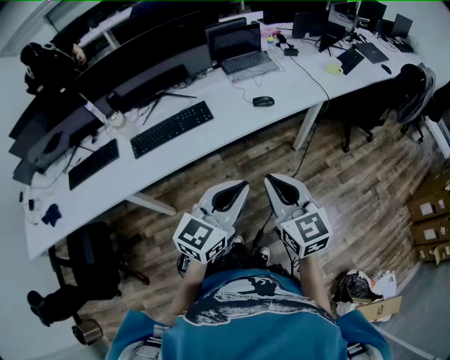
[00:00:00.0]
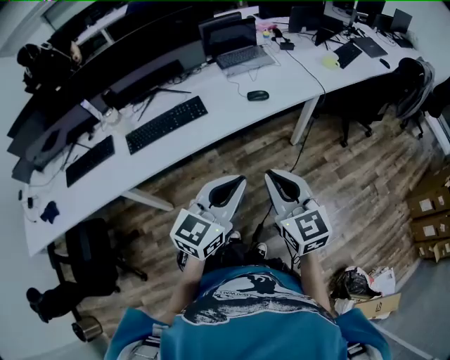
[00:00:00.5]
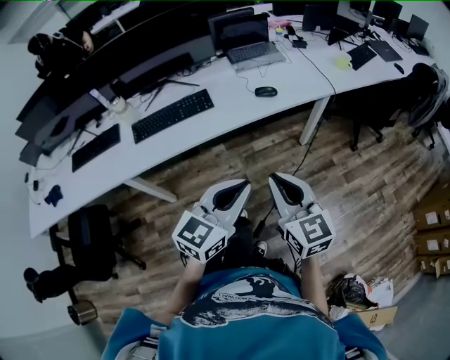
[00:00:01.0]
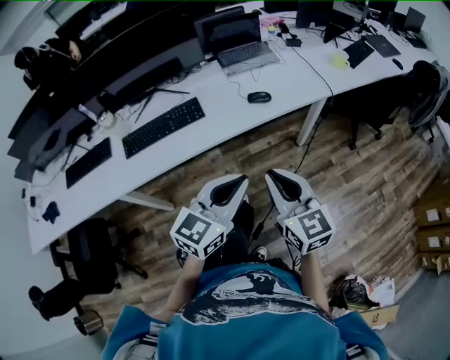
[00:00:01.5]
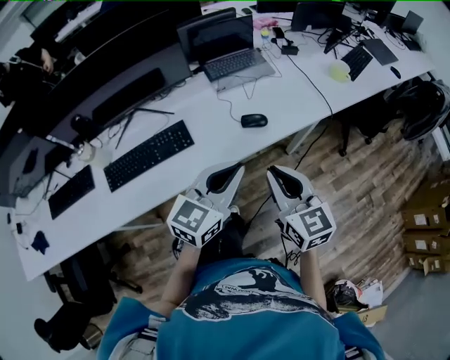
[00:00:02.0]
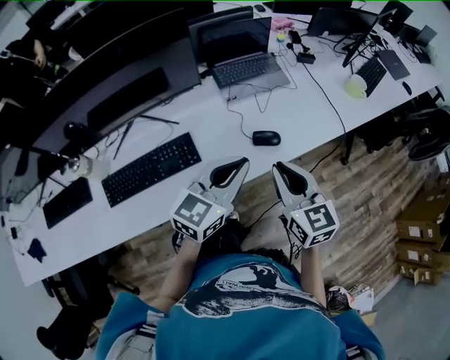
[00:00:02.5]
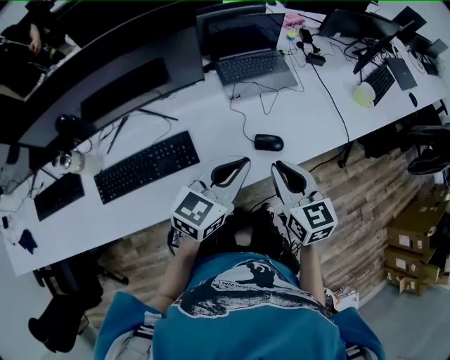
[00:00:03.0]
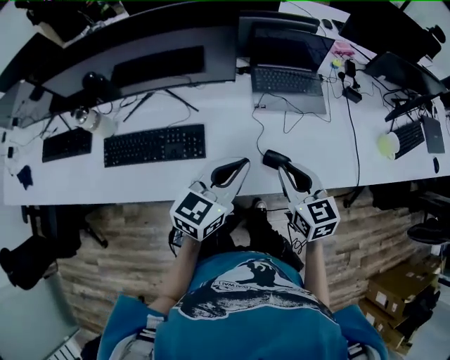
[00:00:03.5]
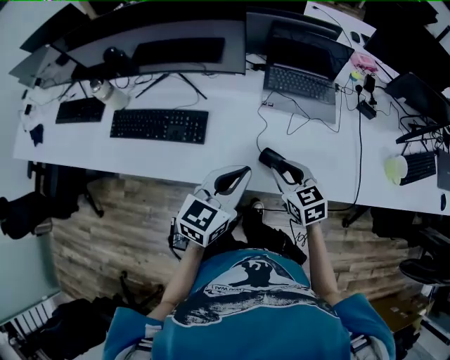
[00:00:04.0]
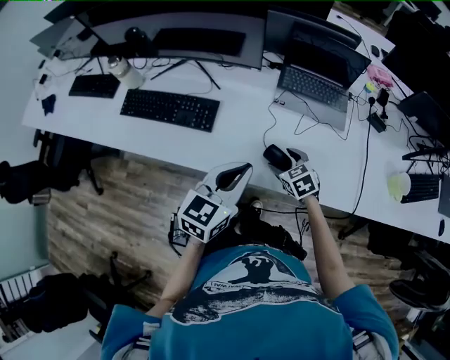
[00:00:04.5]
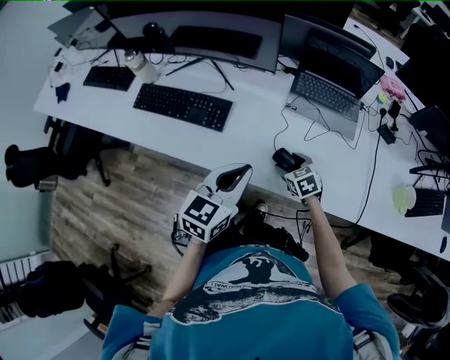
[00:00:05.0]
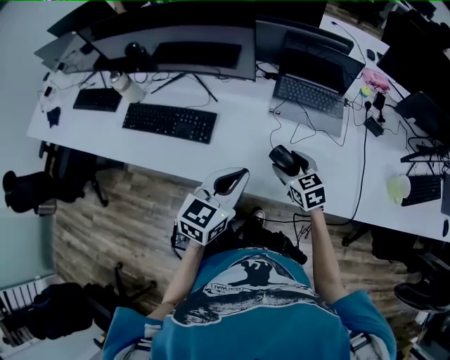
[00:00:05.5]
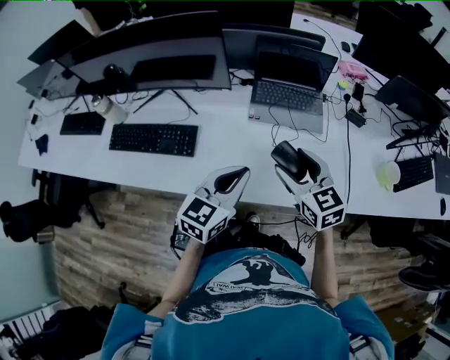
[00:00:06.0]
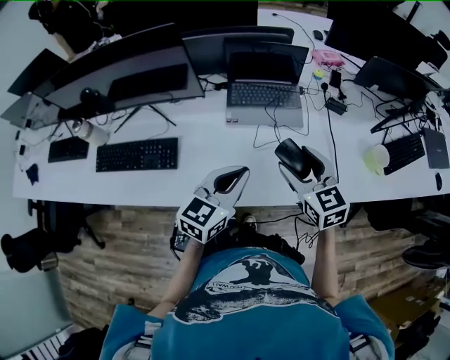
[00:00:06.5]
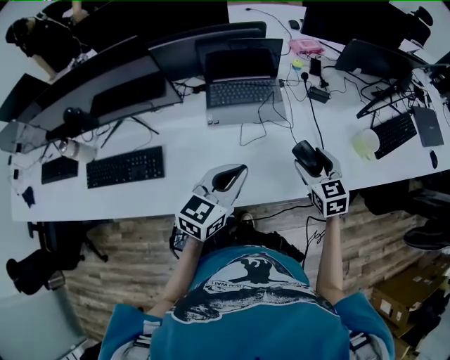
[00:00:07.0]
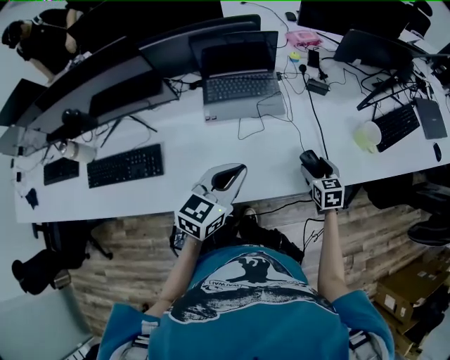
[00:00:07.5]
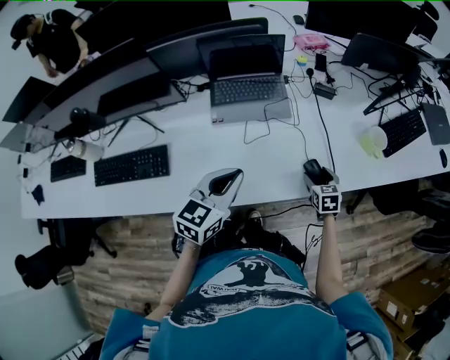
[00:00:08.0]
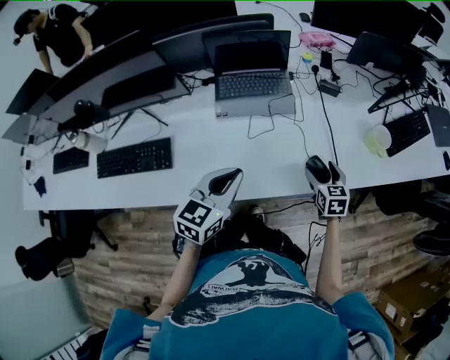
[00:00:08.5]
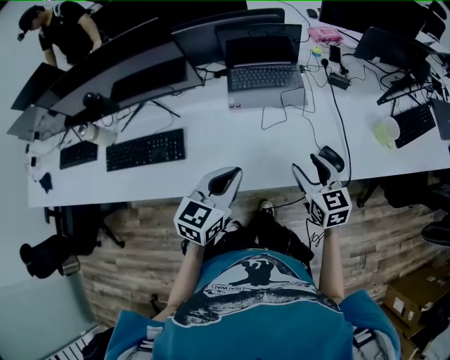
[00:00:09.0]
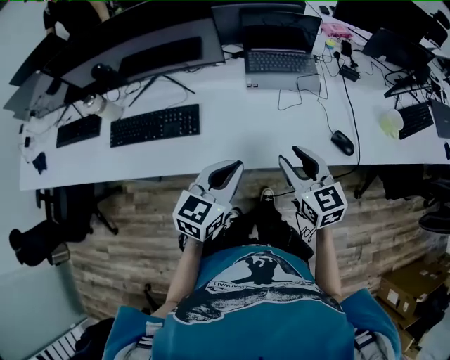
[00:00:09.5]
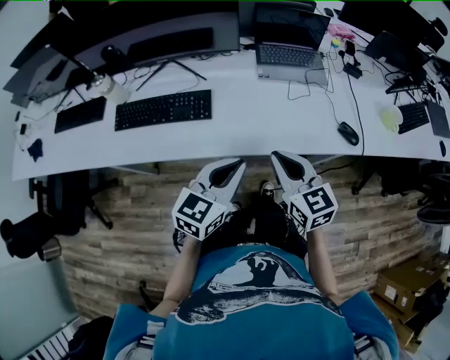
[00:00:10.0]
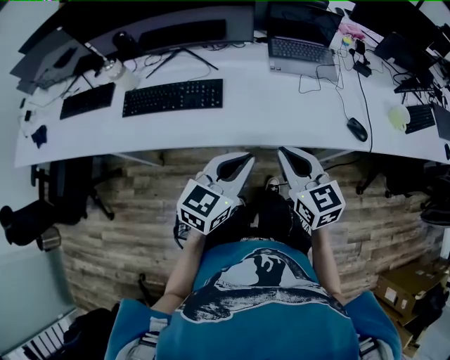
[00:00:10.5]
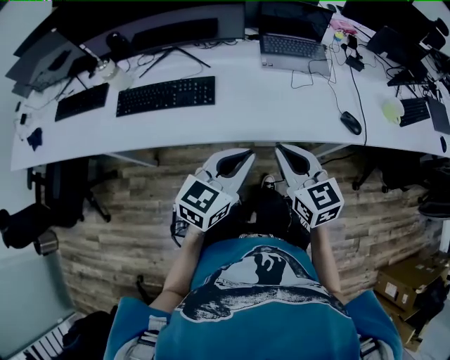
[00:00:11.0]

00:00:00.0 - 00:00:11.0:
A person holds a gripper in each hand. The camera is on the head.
00:00:00.0 - 00:00:02.0: The grippers both shift forward by some 25 cm.
00:00:02.0 - 00:00:03.5: Both grippers travel together forward, about 20 cm. The right gripper changes its angle by approximately 20 degrees; the left gripper rotates approximately 20 degrees.
00:00:03.5 - 00:00:05.5: The left gripper moves about 5 cm, and changes its angle by approximately 20 degrees. Meanwhile the right gripper moves downward, some 10 cm, changes its angle by roughly 30 degrees, and opens up.
00:00:05.5 - 00:00:07.5: The right gripper travels upward and back again, roughly 15 cm each way, and swivels roughly 40 degrees. Meanwhile the left gripper ends up about 15 cm from where it was, and swivels some 20 degrees.
00:00:07.5 - 00:00:09.0: The right gripper is displaced to the left, upward and backward by some 20 cm, and changes its angle by some 20 degrees, while the left gripper heads to the left and backward, covering some 10 cm.
00:00:09.0 - 00:00:11.0: The left gripper heads backward and to the left, covering approximately 20 cm; the right gripper is displaced to the left and backward by about 25 cm, and closes up.

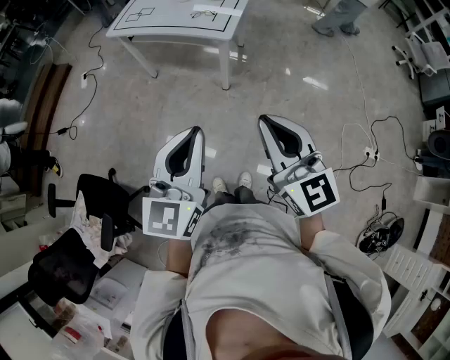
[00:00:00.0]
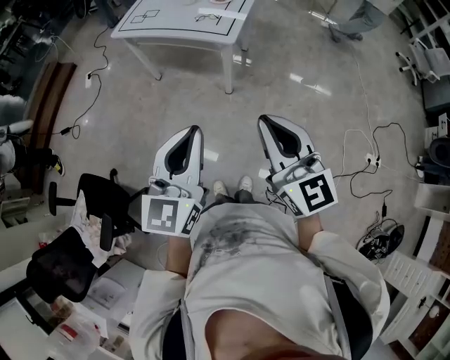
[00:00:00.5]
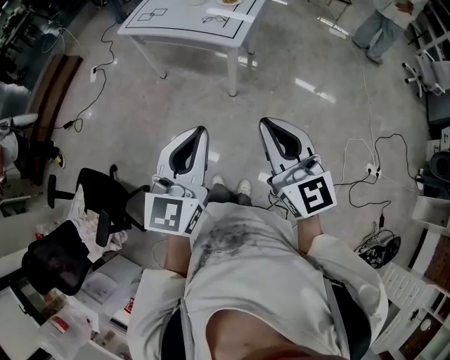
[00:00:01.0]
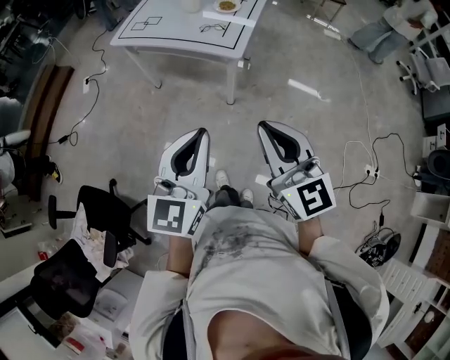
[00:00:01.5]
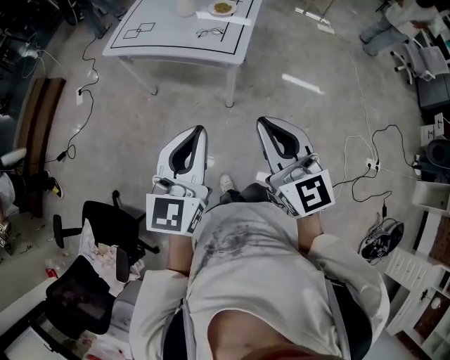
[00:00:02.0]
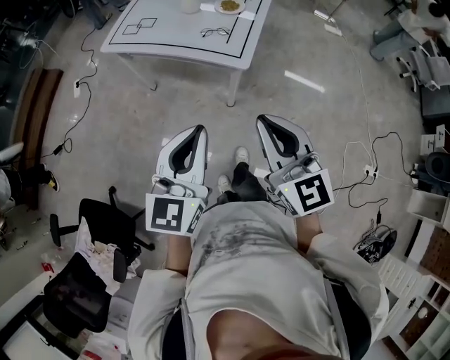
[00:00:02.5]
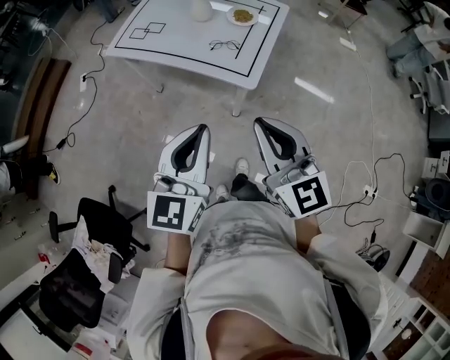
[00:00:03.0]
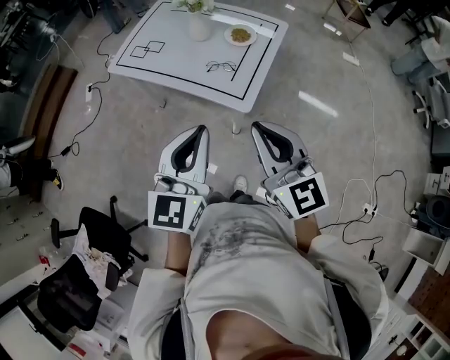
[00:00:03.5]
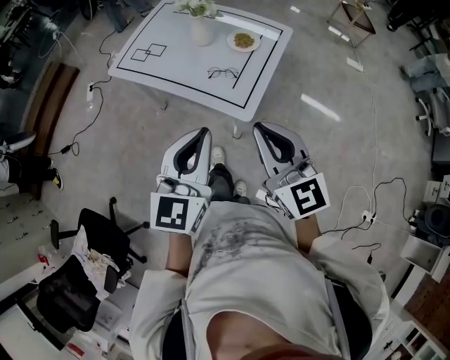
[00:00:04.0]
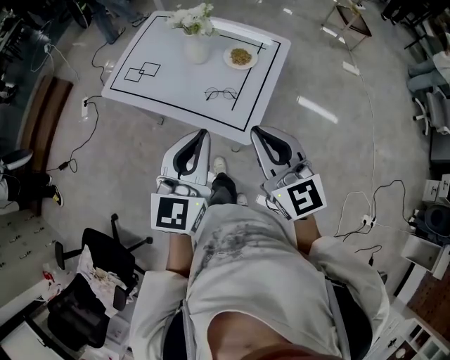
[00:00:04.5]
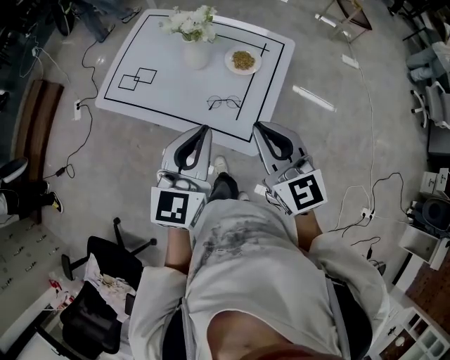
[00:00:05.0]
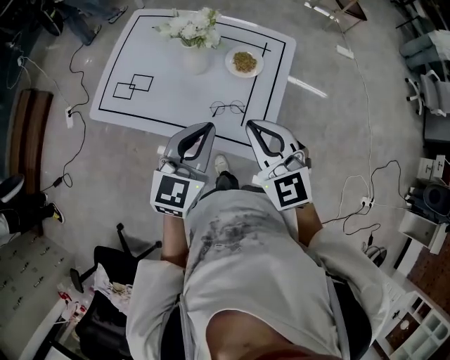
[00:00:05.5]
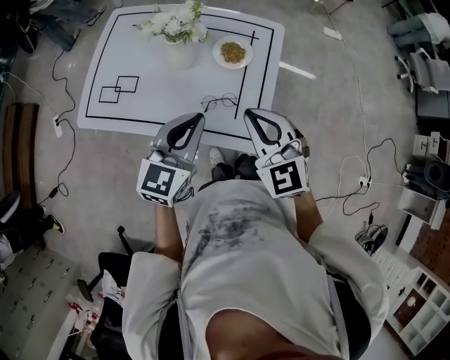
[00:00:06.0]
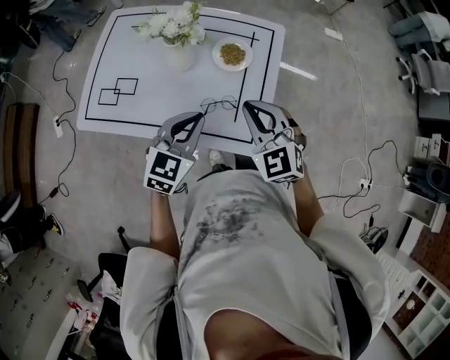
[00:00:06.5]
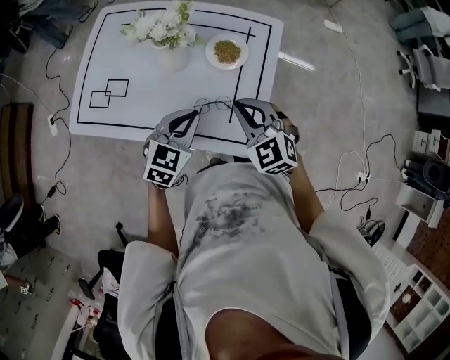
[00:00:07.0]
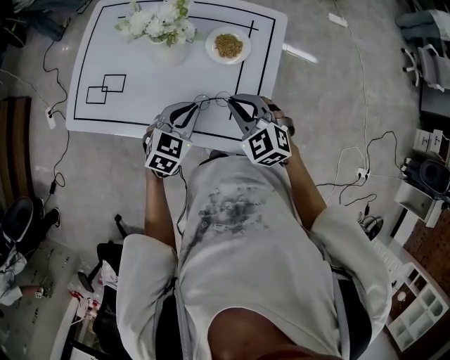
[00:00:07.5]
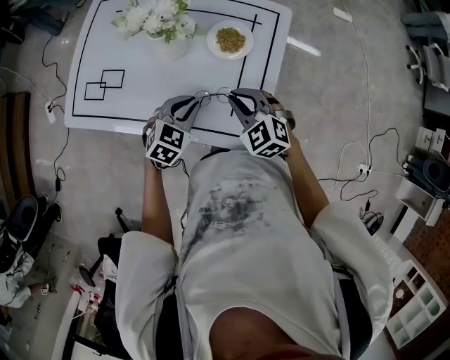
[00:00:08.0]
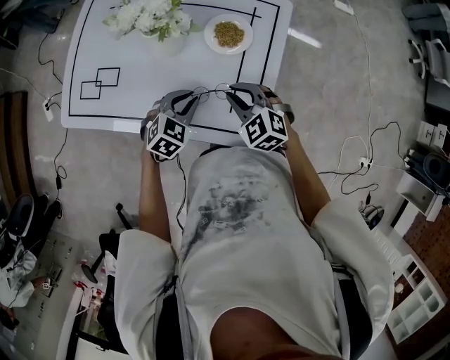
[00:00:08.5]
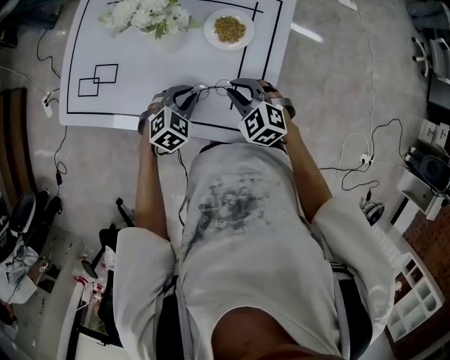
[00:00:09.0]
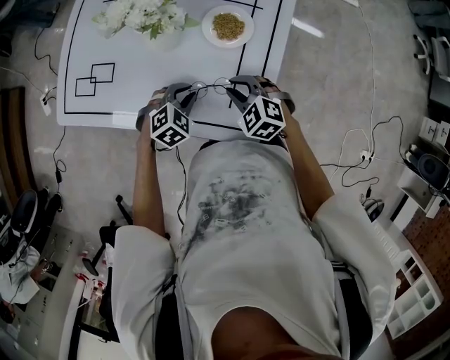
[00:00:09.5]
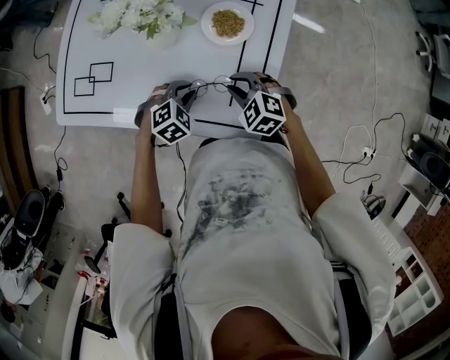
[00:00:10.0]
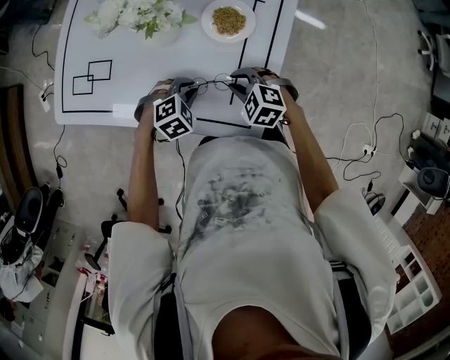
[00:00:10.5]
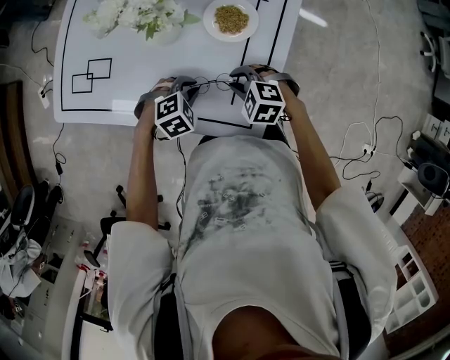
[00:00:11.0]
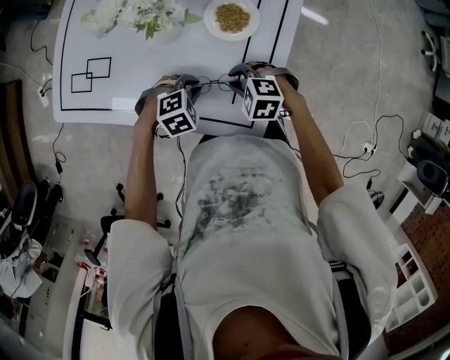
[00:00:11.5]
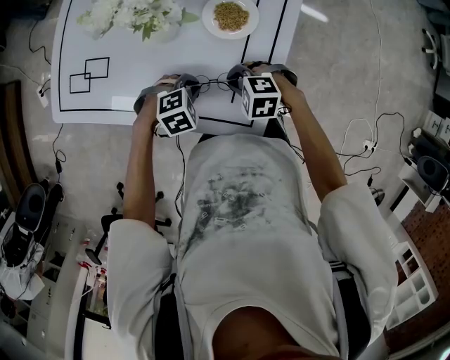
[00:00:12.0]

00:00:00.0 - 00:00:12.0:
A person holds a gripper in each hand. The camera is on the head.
00:00:00.0 - 00:00:02.0: The grippers both shift forward by approximately 15 cm.
00:00:02.0 - 00:00:04.0: Both grippers move forward, roughly 25 cm.
00:00:04.0 - 00:00:06.0: The right gripper travels forward by approximately 25 cm, and rotates some 30 degrees; the left gripper travels forward and downward by approximately 30 cm, and turns by some 30 degrees.
00:00:06.0 - 00:00:08.0: The left gripper travels downward by roughly 20 cm, and tilts its fingers approximately 30 degrees downward. The right gripper moves downward and forward, some 20 cm, and turns by roughly 20 degrees.
00:00:08.0 - 00:00:10.0: The grippers both shift downward by some 10 cm. The left gripper rotates about 30 degrees.
00:00:10.0 - 00:00:12.0: The right gripper turns by about 30 degrees.

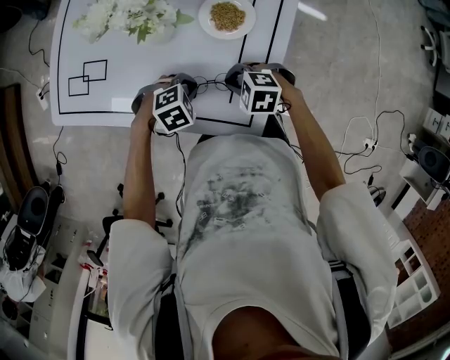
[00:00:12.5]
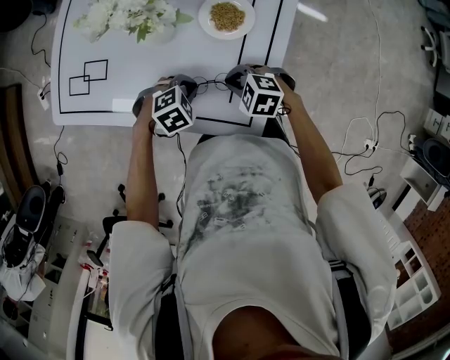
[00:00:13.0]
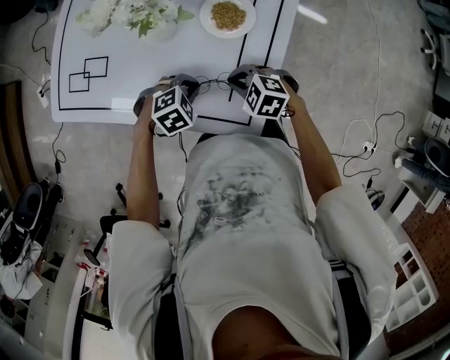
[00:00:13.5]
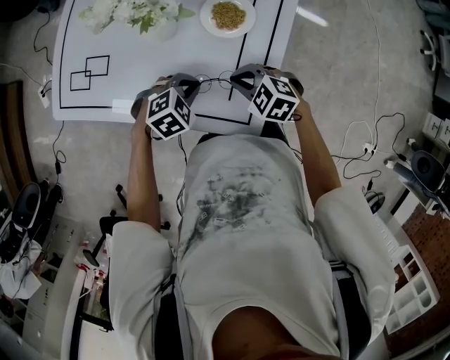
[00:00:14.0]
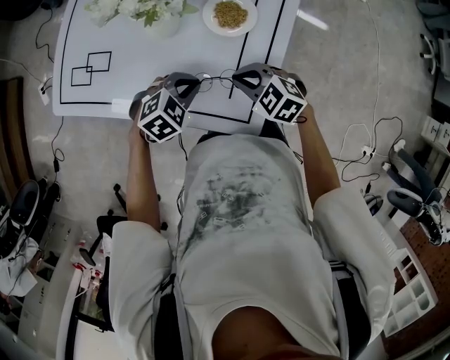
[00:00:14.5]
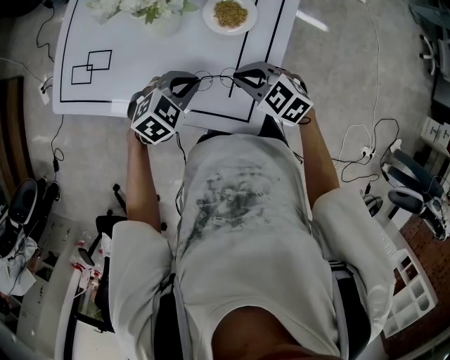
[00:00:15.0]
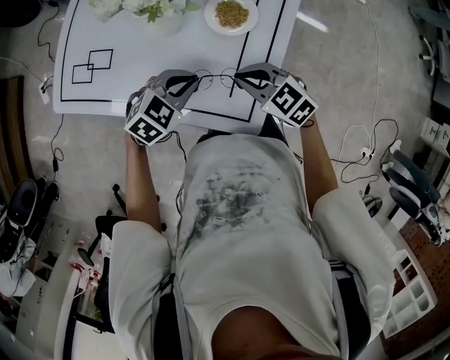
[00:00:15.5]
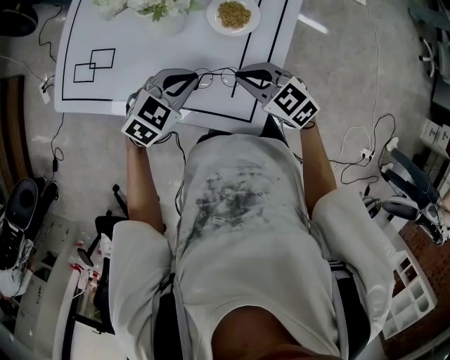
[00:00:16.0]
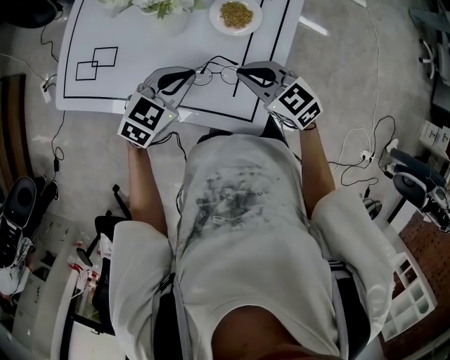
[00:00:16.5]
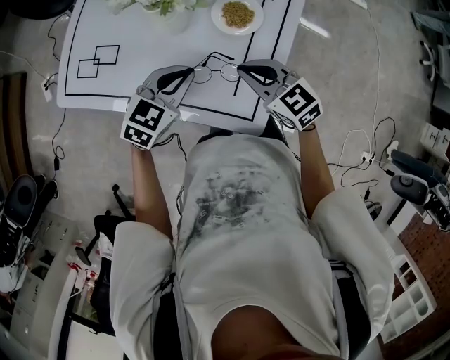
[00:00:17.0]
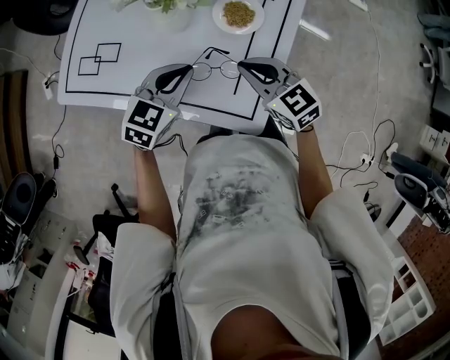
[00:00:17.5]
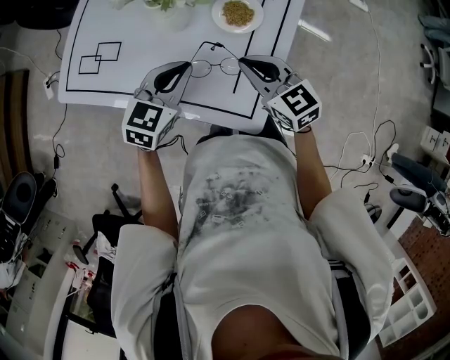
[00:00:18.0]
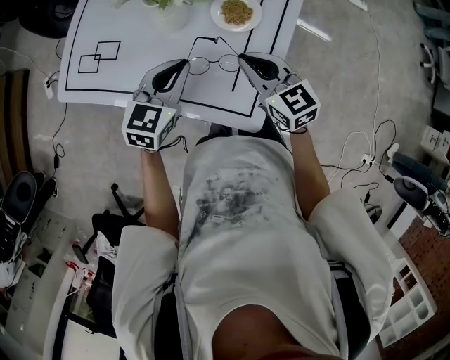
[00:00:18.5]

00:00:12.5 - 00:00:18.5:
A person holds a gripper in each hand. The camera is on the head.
00:00:12.5 - 00:00:14.5: The grippers both shift upward by about 5 cm.
00:00:14.5 - 00:00:16.5: Both grippers travel together upward, approximately 5 cm. The right gripper changes its angle by some 20 degrees; the left gripper changes its angle by roughly 20 degrees.
00:00:16.5 - 00:00:18.5: The left gripper turns by some 20 degrees.
